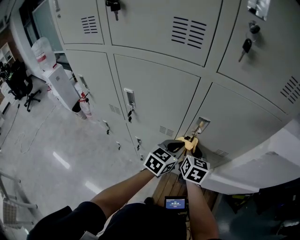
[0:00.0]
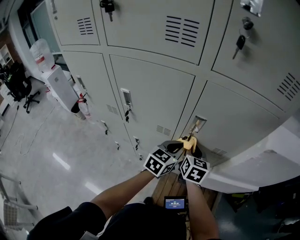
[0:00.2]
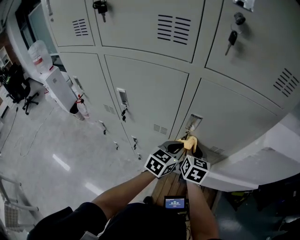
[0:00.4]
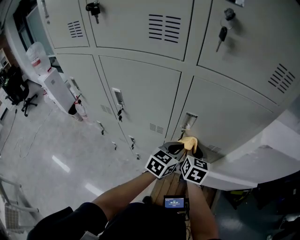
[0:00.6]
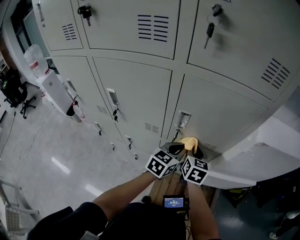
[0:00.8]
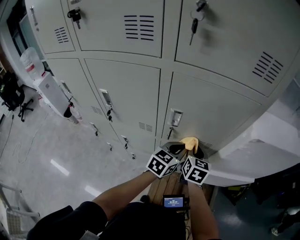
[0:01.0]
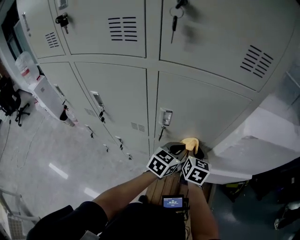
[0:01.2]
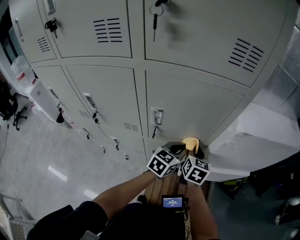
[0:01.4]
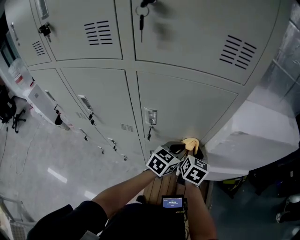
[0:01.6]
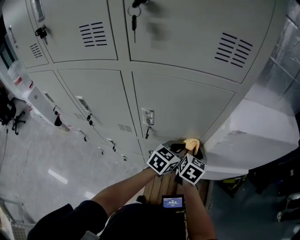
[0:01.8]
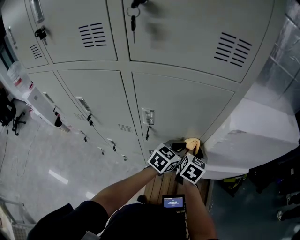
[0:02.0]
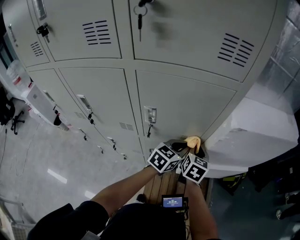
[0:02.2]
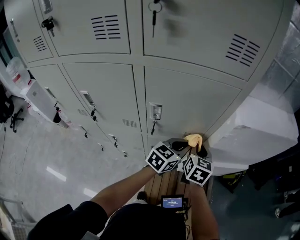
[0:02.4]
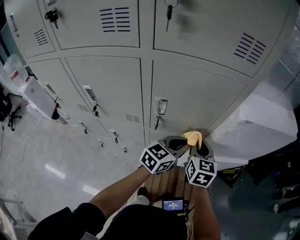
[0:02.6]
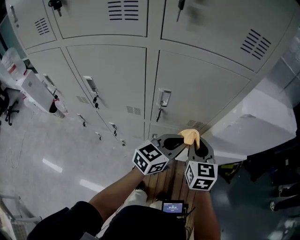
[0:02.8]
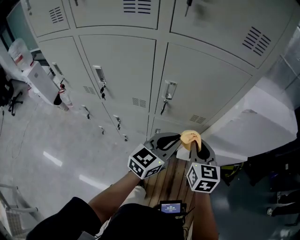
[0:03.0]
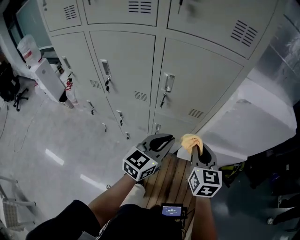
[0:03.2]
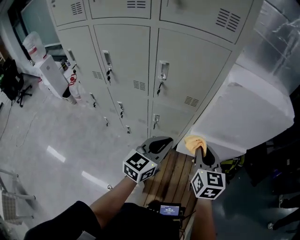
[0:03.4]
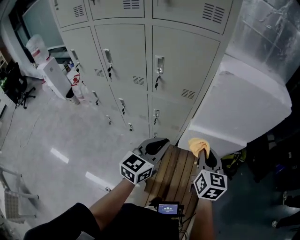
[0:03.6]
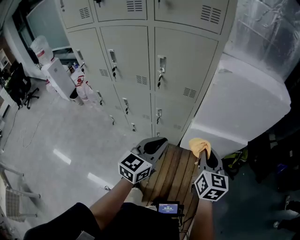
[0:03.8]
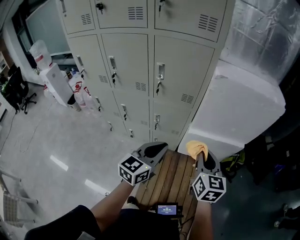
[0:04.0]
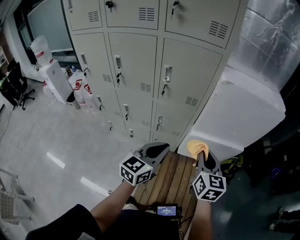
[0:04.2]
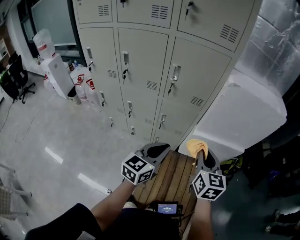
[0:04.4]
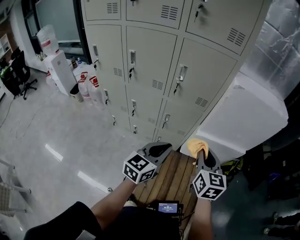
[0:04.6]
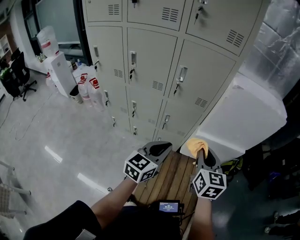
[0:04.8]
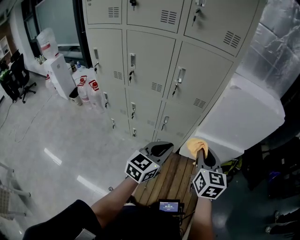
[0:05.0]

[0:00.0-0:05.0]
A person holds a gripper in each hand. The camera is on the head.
0:00.0 to 0:01.6: Both grippers move to the right, some 20 cm.
0:01.6 to 0:03.4: The right gripper moves backward and to the right, about 25 cm, and swivels roughly 20 degrees, while the left gripper moves backward, about 25 cm.
0:03.4 to 0:05.0: The grippers both shift backward by some 15 cm.

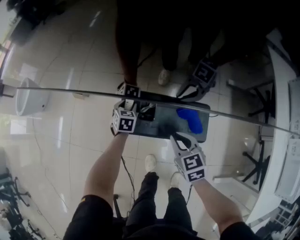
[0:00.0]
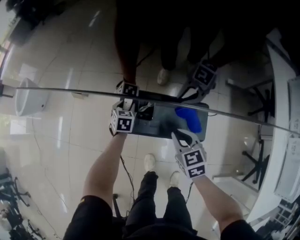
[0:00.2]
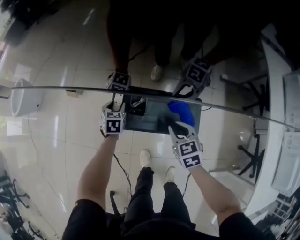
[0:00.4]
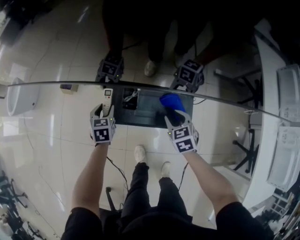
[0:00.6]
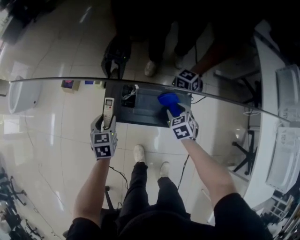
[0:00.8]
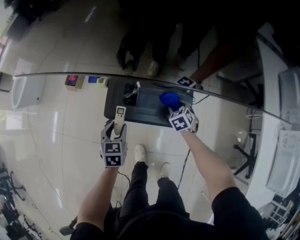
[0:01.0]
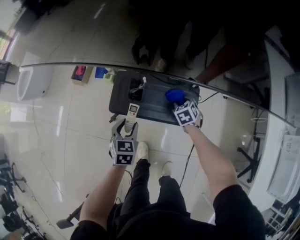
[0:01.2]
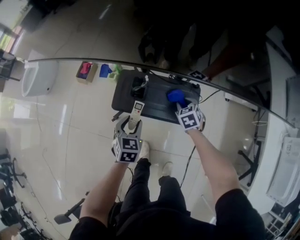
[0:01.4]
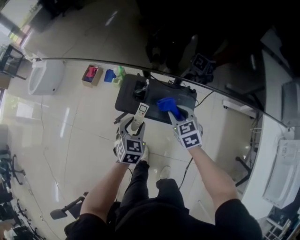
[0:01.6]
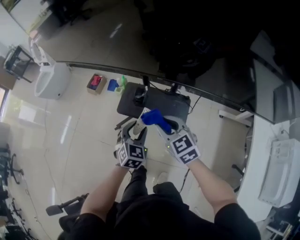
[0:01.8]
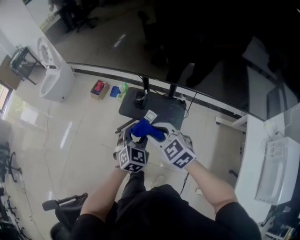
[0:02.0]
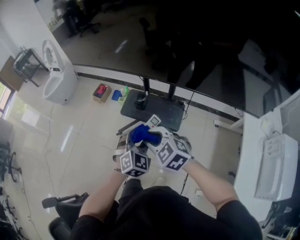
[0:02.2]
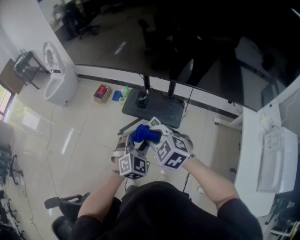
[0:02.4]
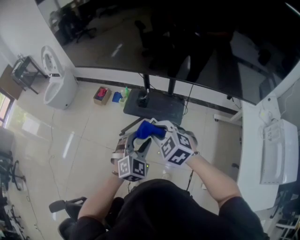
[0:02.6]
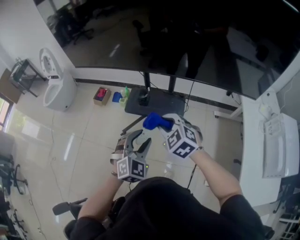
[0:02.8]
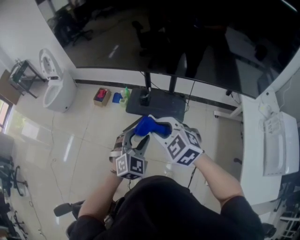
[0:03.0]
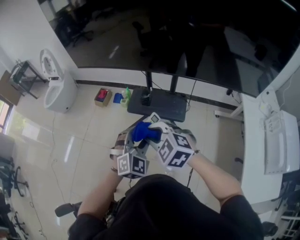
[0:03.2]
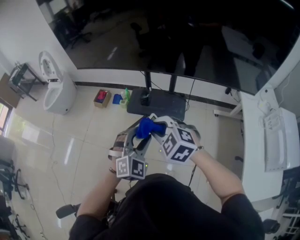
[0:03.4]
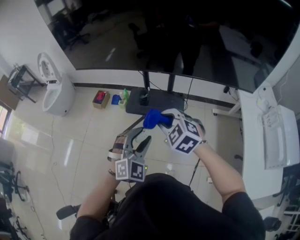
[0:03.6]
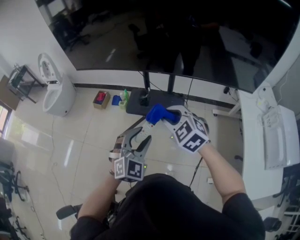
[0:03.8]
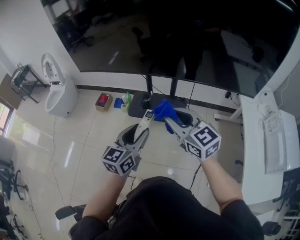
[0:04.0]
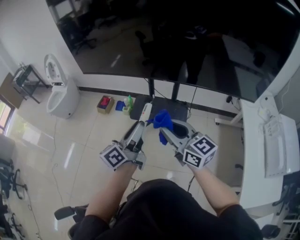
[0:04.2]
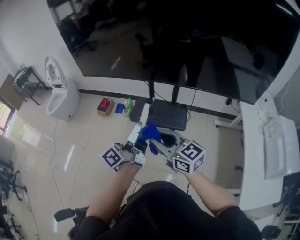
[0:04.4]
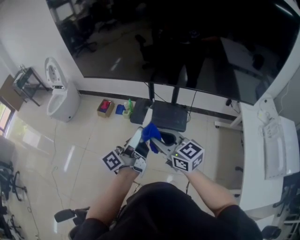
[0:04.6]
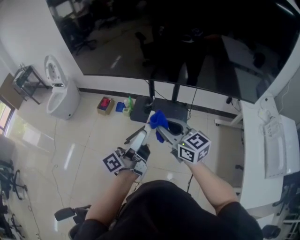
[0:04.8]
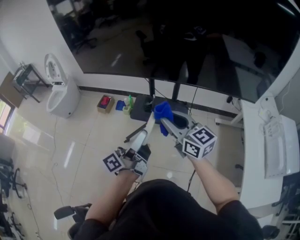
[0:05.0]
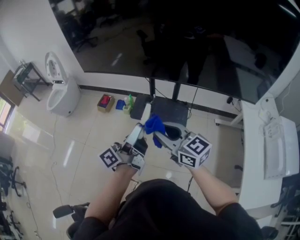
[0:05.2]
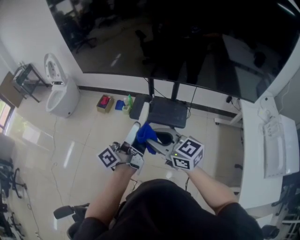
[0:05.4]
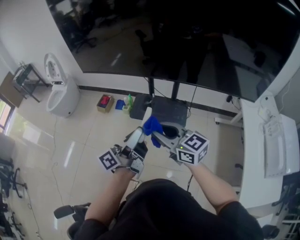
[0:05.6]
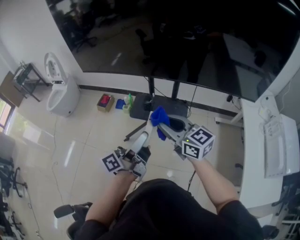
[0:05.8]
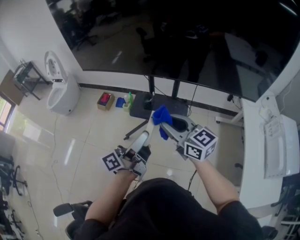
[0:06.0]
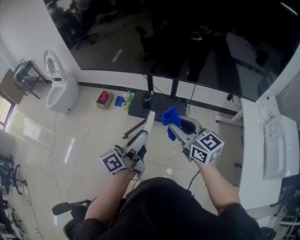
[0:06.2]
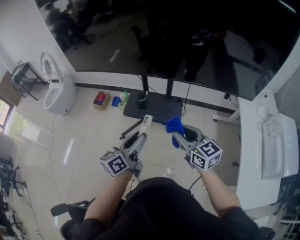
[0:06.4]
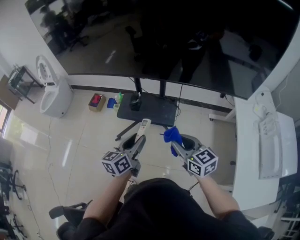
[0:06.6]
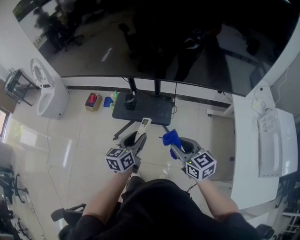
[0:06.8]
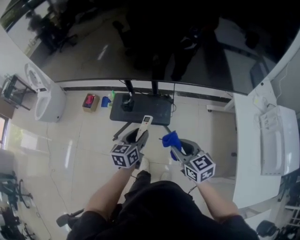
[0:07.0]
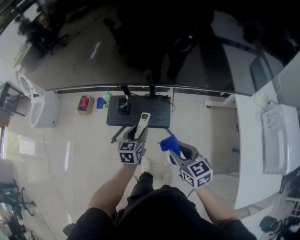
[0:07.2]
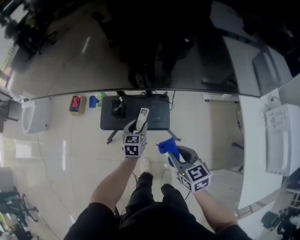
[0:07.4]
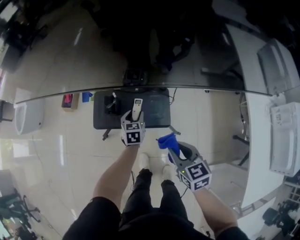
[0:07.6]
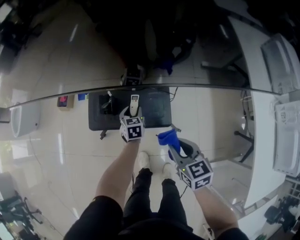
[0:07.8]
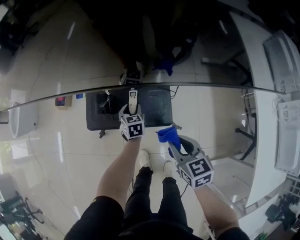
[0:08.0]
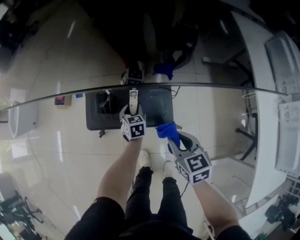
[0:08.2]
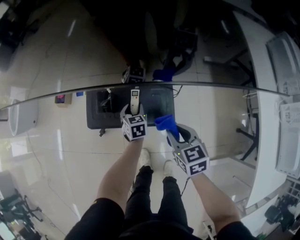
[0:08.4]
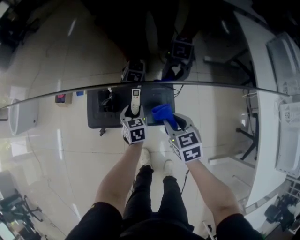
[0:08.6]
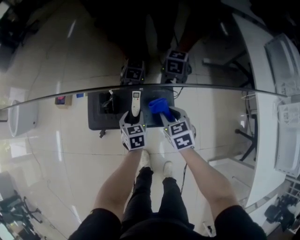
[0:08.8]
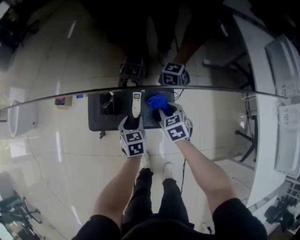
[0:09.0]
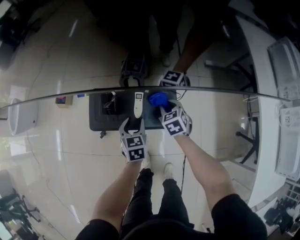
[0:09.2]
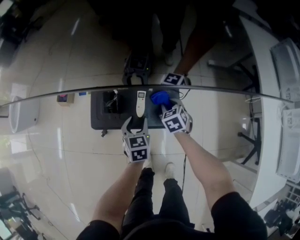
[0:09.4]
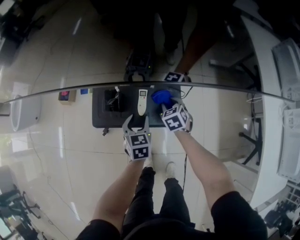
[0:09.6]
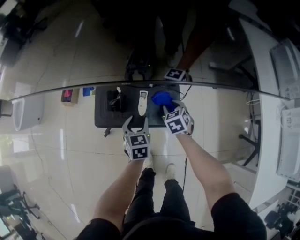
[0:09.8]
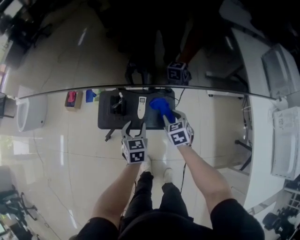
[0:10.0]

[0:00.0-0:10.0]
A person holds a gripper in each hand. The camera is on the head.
0:00.0 to 0:01.4: The right gripper is displaced to the right, downward and forward by approximately 15 cm, and opens and closes again. Meanwhile the left gripper travels backward and upward by some 25 cm.
0:01.4 to 0:02.8: The left gripper travels upward and backward by roughly 35 cm, and rotates approximately 40 degrees. Meanwhile the right gripper moves upward, backward and to the left, some 50 cm, and rotates roughly 40 degrees.
0:02.8 to 0:04.2: The right gripper heads upward, covering roughly 10 cm, and tips its fingers upward by about 40 degrees. The left gripper moves upward and to the left, some 10 cm, and twists roughly 90 degrees counterclockwise, seen from behind.
0:04.2 to 0:05.8: The left gripper shifts some 5 cm backward, and turns by approximately 20 degrees; the right gripper moves left and right over some 5 cm, changing direction 3 times.
0:05.8 to 0:07.2: The right gripper goes approximately 25 cm to the right and downward, and swivels approximately 30 degrees, while the left gripper is displaced downward, forward and to the right by about 30 cm, and angles its fingers downward, by some 50 degrees.
0:07.2 to 0:08.6: The right gripper goes some 25 cm forward and downward. The left gripper travels downward and forward by about 25 cm, and swivels roughly 20 degrees.
0:08.6 to 0:10.0: The right gripper reaches roughly 15 cm downward, then returns, while the left gripper heads upward and backward, covering about 15 cm.

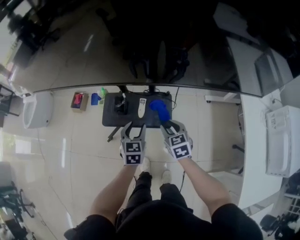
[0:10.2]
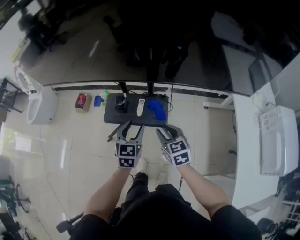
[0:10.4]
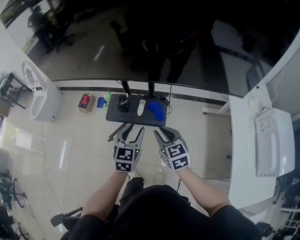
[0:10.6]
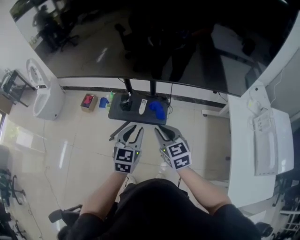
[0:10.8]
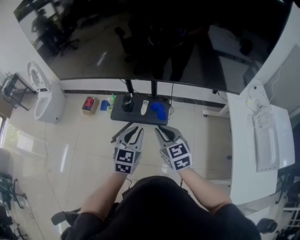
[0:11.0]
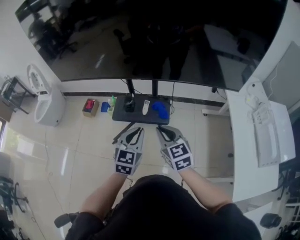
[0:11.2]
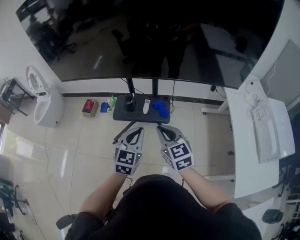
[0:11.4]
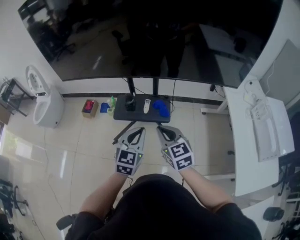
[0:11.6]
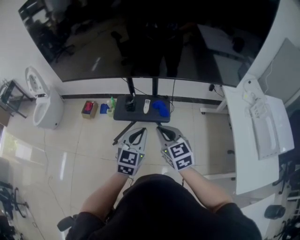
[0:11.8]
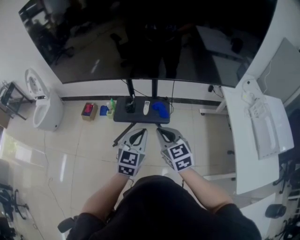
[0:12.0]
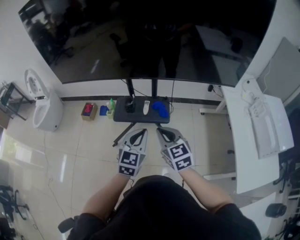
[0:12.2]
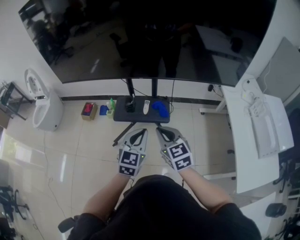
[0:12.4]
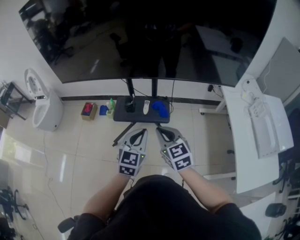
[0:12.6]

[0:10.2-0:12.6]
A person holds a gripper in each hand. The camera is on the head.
0:10.2 to 0:11.4: The grippers both shift upward and backward by approximately 25 cm. The left gripper changes its angle by approximately 20 degrees, and closes its fingers, while the right gripper turns by approximately 20 degrees, and closes.
0:11.4 to 0:12.6: The grippers stay close to where they were, moving slightly.

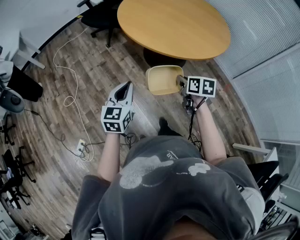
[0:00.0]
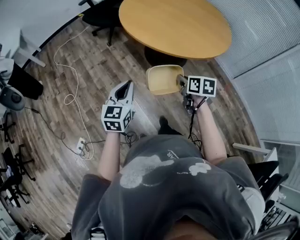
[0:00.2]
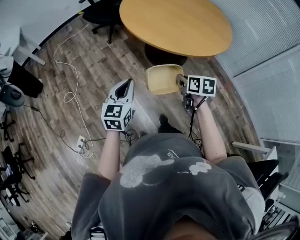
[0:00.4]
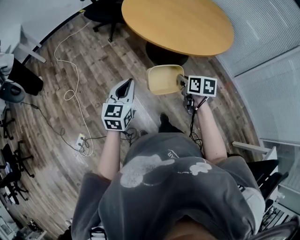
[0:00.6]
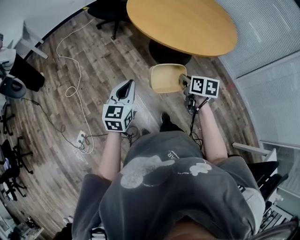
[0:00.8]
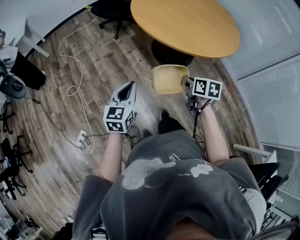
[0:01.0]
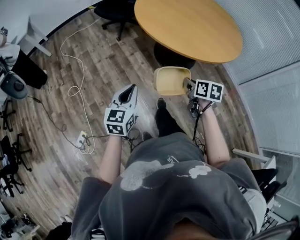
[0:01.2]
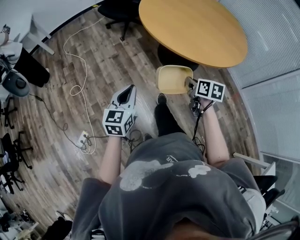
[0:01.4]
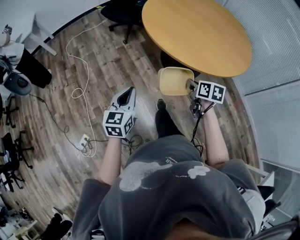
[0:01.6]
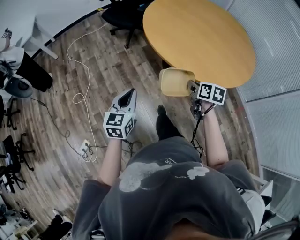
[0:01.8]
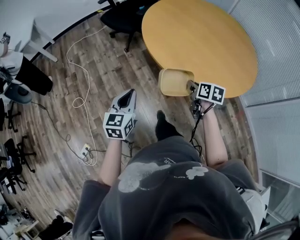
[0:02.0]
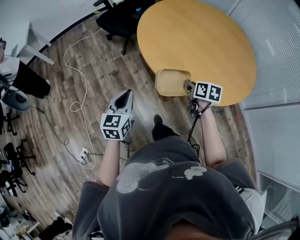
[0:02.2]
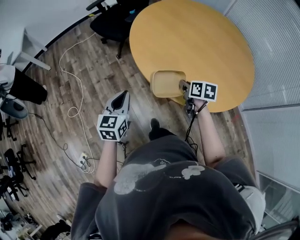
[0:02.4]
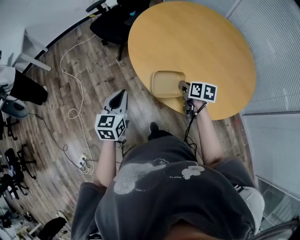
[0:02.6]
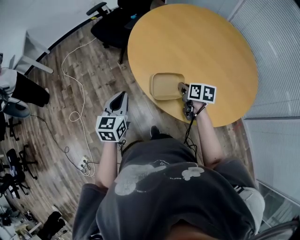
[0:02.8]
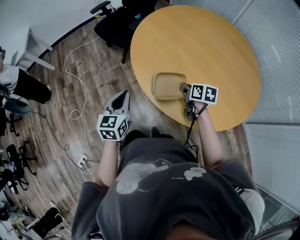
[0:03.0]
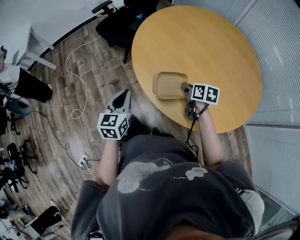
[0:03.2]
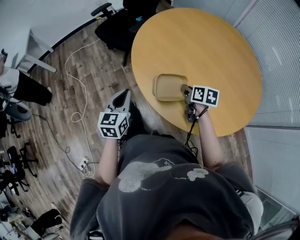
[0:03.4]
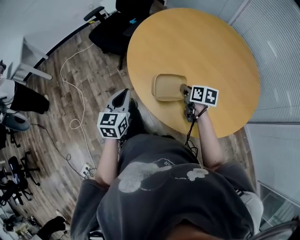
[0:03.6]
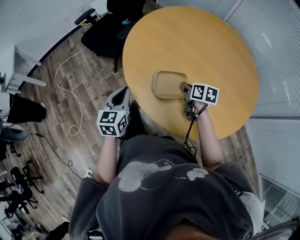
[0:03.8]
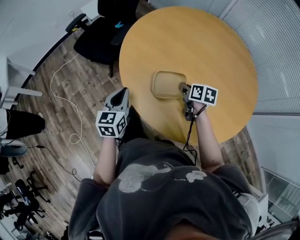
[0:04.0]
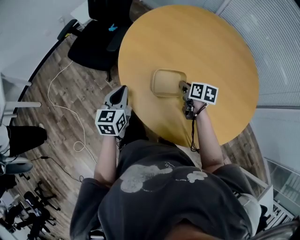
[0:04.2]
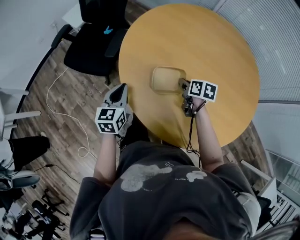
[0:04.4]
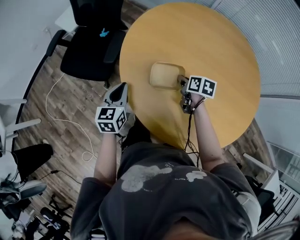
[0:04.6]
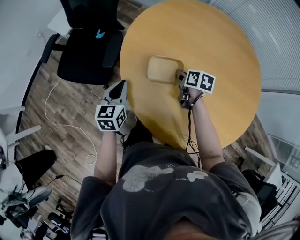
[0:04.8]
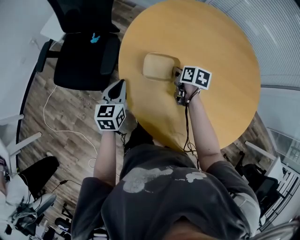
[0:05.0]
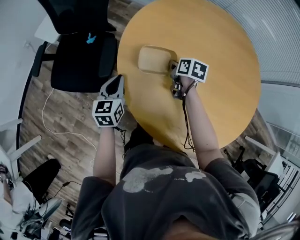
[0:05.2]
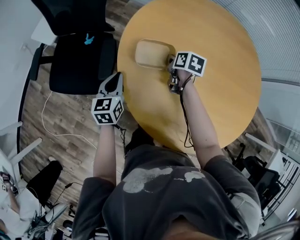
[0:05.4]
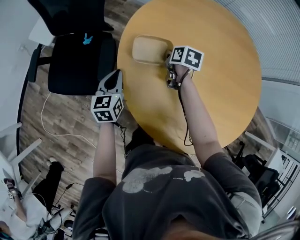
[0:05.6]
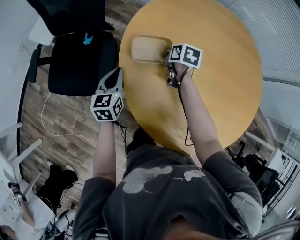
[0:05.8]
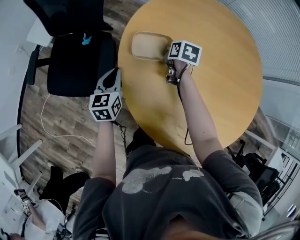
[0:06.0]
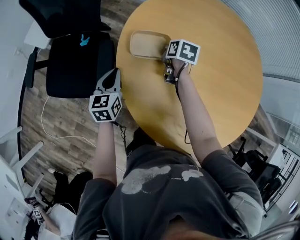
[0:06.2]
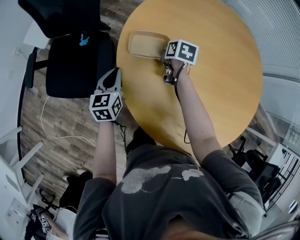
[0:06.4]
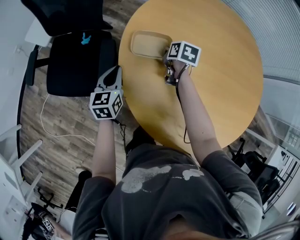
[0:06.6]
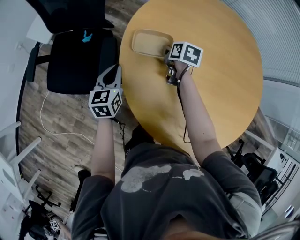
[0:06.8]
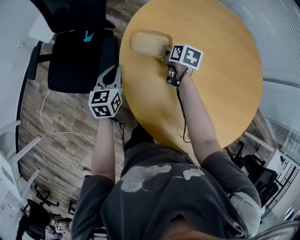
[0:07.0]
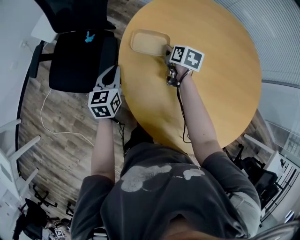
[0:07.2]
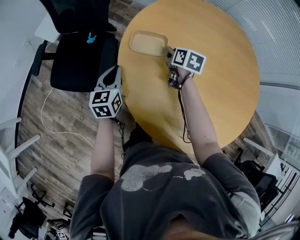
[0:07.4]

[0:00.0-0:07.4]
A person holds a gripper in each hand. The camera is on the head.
0:00.0 to 0:01.4: The right gripper goes some 5 cm to the left. The left gripper goes about 10 cm to the left.
0:01.4 to 0:03.0: The pair of grippers is taken forward, roughly 40 cm.
0:03.0 to 0:04.4: Both grippers travel together forward, roughly 30 cm. The left gripper turns by roughly 20 degrees, while the right gripper rotates roughly 20 degrees.
0:04.4 to 0:06.0: The two grippers go approximately 25 cm forward. The right gripper rotates approximately 20 degrees.
0:06.0 to 0:07.4: The left gripper changes place by some 5 cm. Meanwhile the right gripper moves upward, some 5 cm, and opens.
